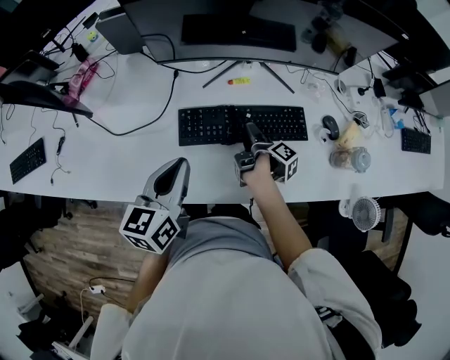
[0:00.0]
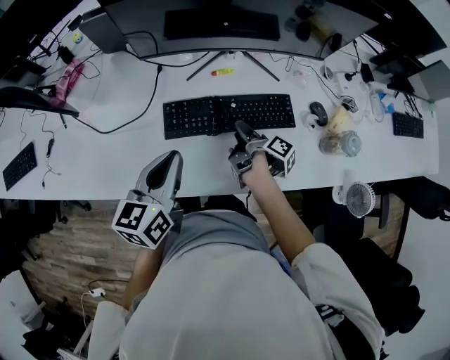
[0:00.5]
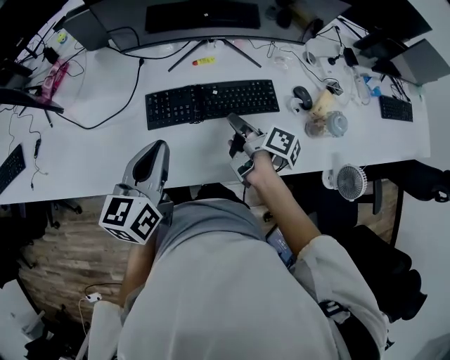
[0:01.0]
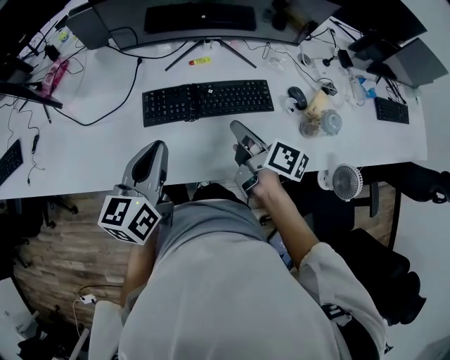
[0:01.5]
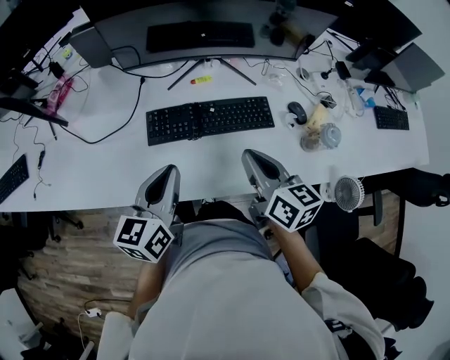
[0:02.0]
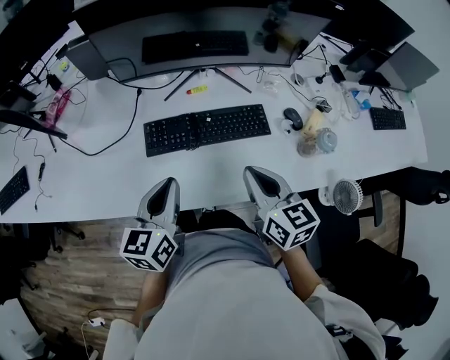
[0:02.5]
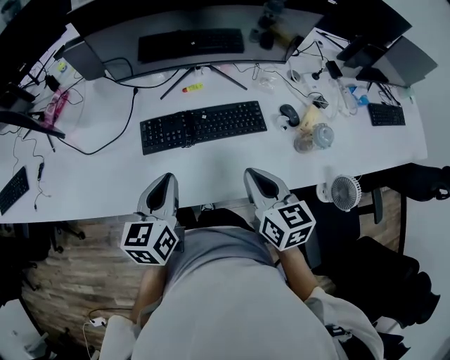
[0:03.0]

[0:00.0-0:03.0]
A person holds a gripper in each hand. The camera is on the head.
0:00.0 to 0:01.5: The left gripper moves approximately 5 cm; the right gripper heads upward and backward, covering some 15 cm, rotates around the line of its fingers by roughly 40 degrees, counterclockwise from behind, and closes its fingers.
0:01.5 to 0:03.0: The right gripper shifts roughly 10 cm backward and upward, and rotates around the line of its fingers by approximately 40 degrees, counterclockwise from behind.

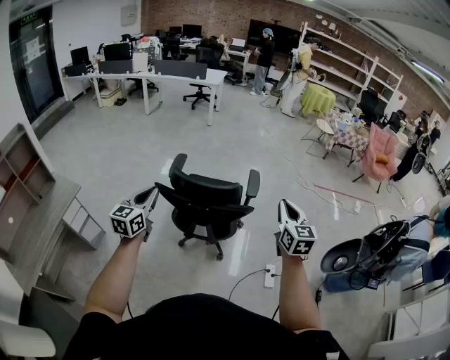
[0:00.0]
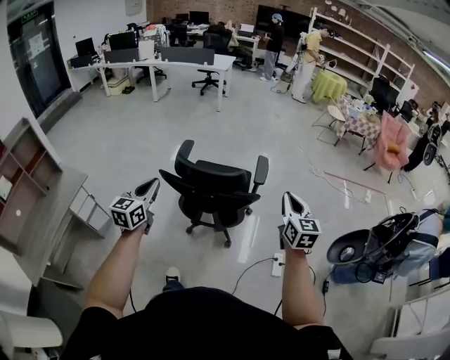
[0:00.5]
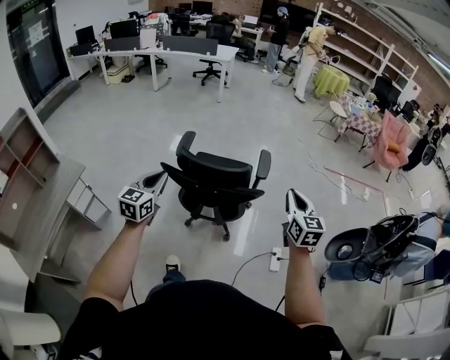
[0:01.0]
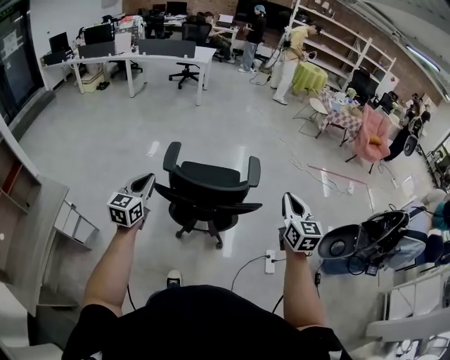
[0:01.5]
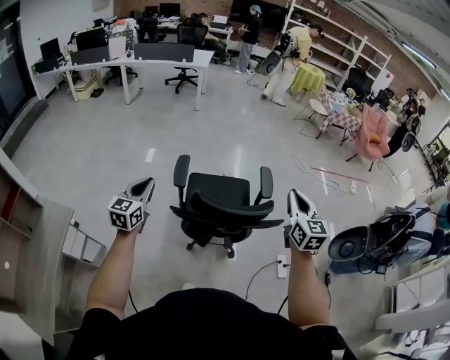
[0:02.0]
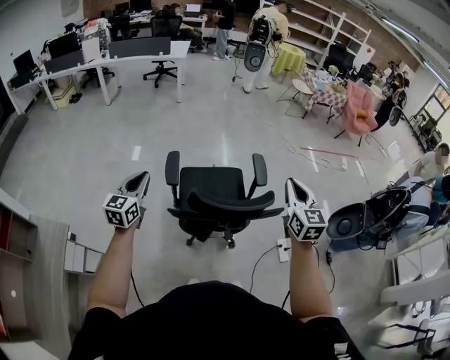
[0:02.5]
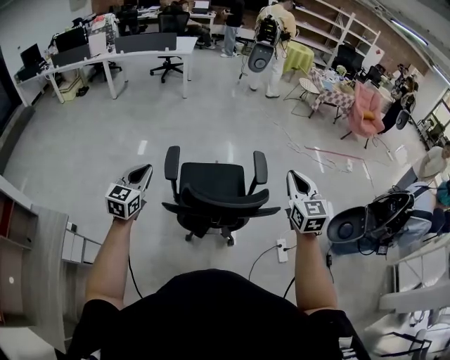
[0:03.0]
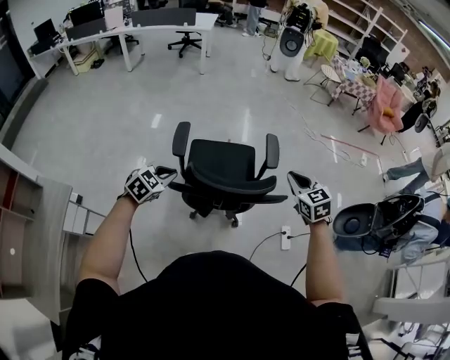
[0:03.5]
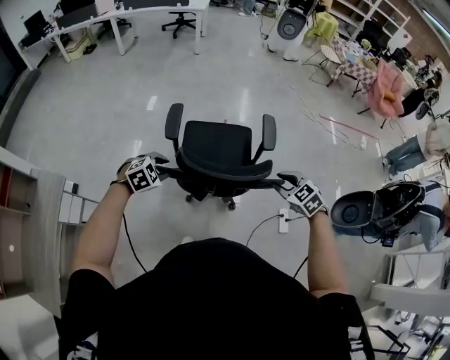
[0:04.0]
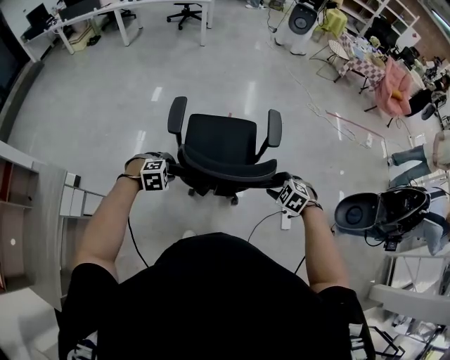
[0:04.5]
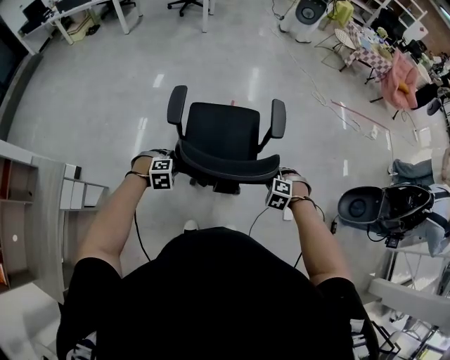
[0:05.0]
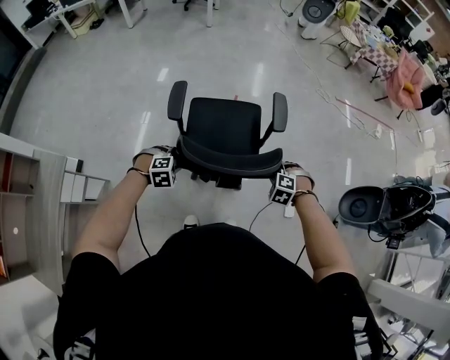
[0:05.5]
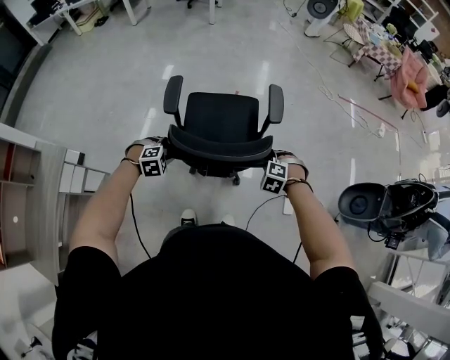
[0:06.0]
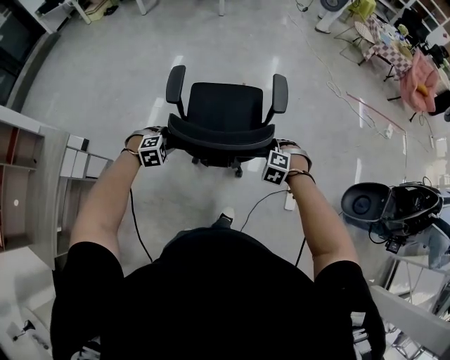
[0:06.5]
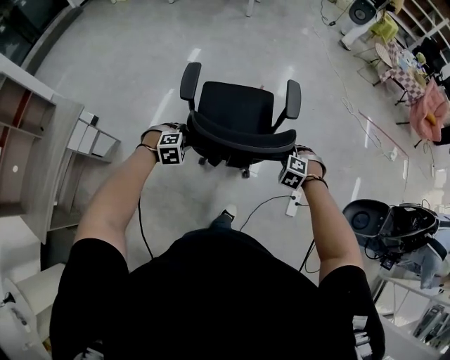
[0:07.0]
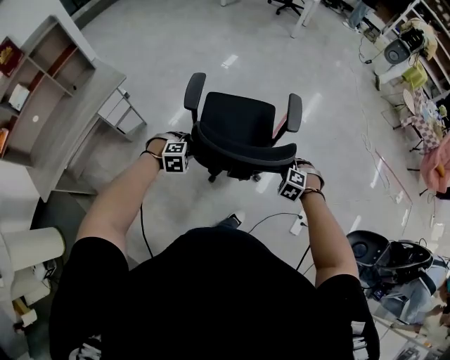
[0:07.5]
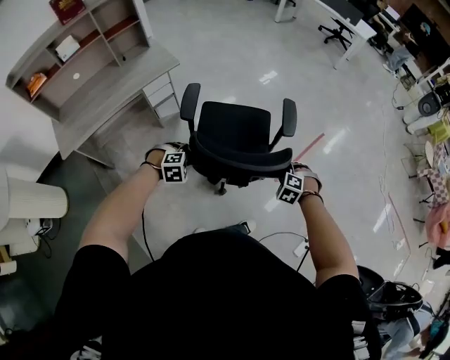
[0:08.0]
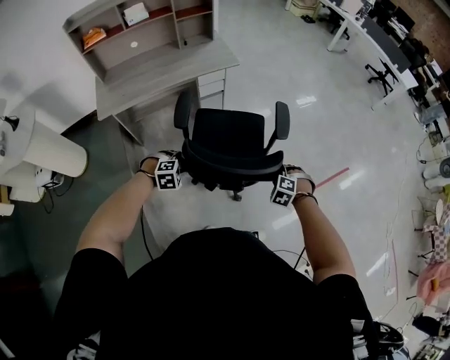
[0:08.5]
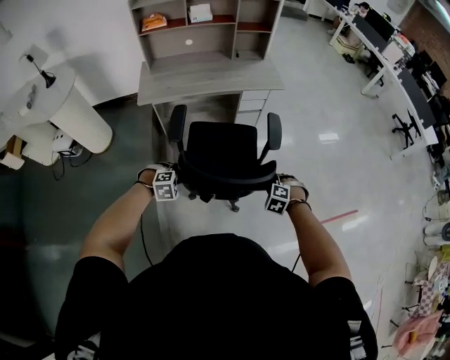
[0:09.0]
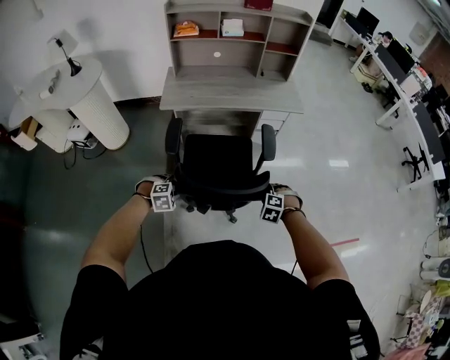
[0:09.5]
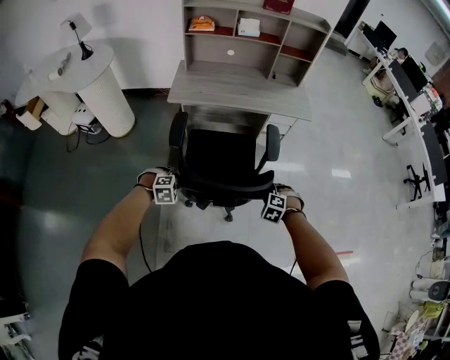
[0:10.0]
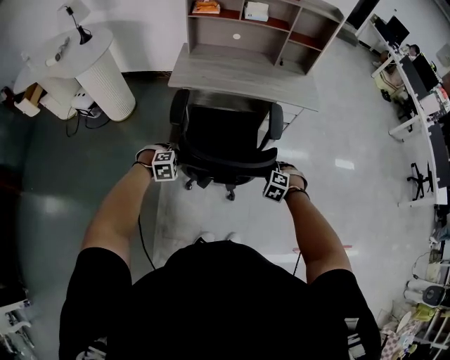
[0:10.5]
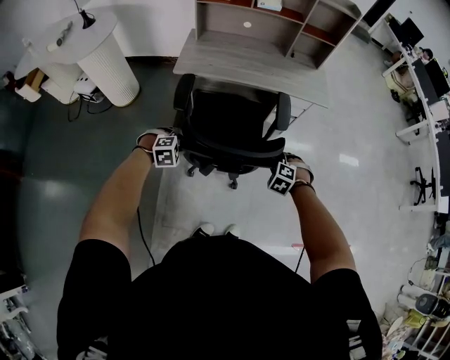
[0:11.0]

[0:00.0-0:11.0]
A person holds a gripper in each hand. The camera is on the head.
0:00.0 to 0:02.0: The right gripper moves to the left and forward, some 20 cm. The left gripper travels forward and to the left by approximately 25 cm.
0:02.0 to 0:03.5: The right gripper goes roughly 10 cm downward, and rotates some 30 degrees, while the left gripper moves to the right and downward, approximately 15 cm, and angles its fingers downward, by some 30 degrees.
0:03.5 to 0:05.5: The two grippers go roughly 20 cm downward. The left gripper rotates approximately 40 degrees, and opens. Meanwhile the right gripper angles its fingers downward, by some 40 degrees, and opens.
0:05.5 to 0:07.5: The left gripper is displaced backward by approximately 25 cm, and changes its angle by some 20 degrees. The right gripper travels backward and to the left by some 15 cm.
0:07.5 to 0:09.0: The two grippers travel together, about 50 cm. The right gripper twists roughly 50 degrees counterclockwise, seen from behind; the left gripper rolls counterclockwise, seen from behind, by about 50 degrees.
0:09.0 to 0:11.0: The right gripper heads forward and to the left, covering approximately 20 cm. The left gripper is displaced to the left and forward by about 15 cm.

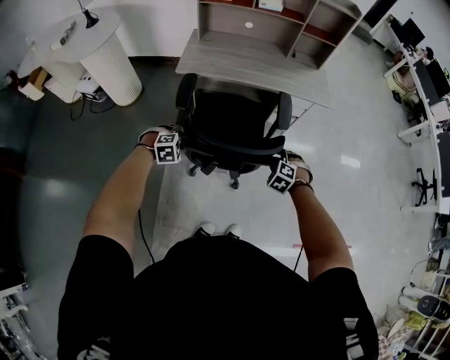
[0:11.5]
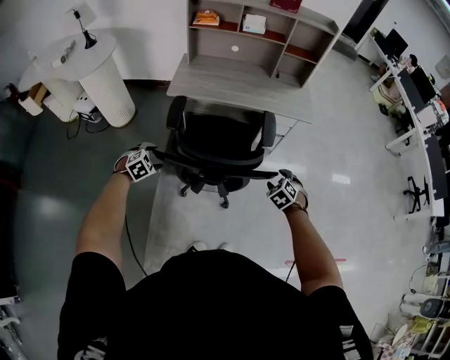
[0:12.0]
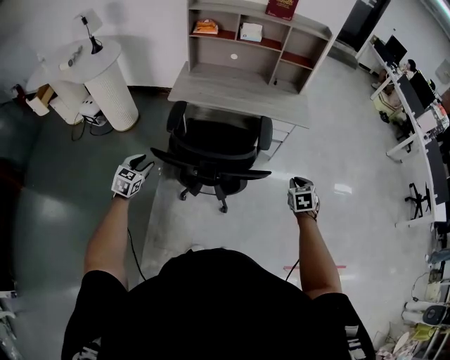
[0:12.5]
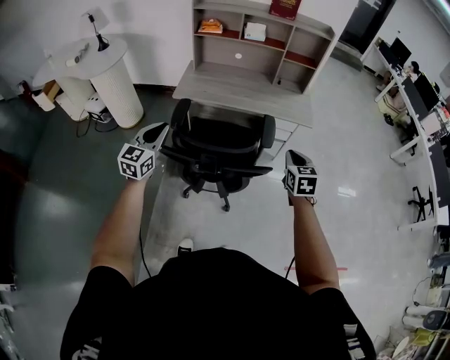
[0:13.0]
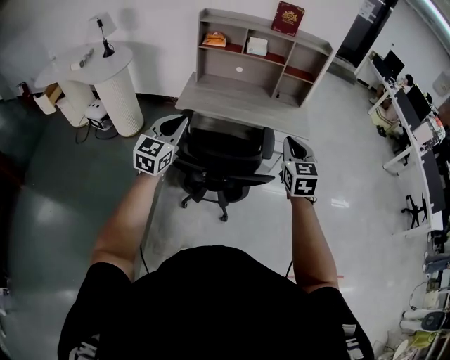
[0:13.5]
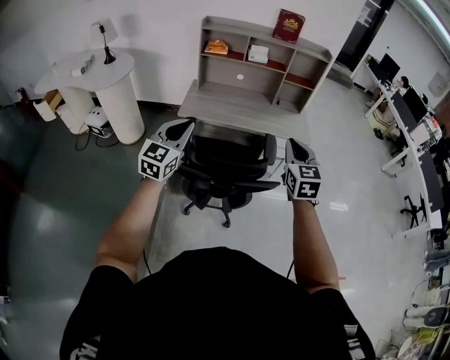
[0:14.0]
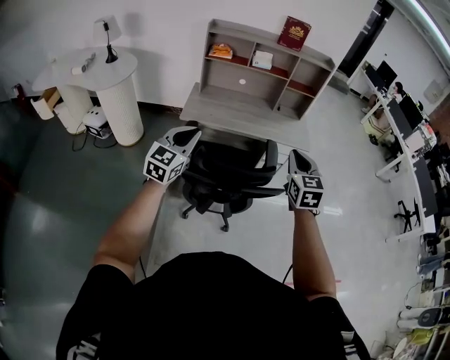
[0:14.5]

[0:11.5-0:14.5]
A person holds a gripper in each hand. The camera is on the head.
0:11.5 to 0:13.0: The right gripper heads upward and to the right, covering about 25 cm, twists about 60 degrees clockwise, seen from behind, and closes; the left gripper goes approximately 30 cm upward, tilts its fingers some 60 degrees upward, and closes up.
0:13.0 to 0:14.5: The right gripper shifts some 20 cm upward and to the left; the left gripper moves upward, about 10 cm.

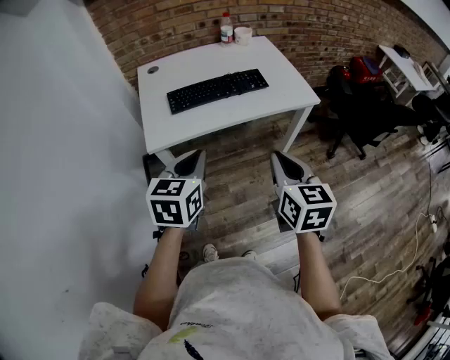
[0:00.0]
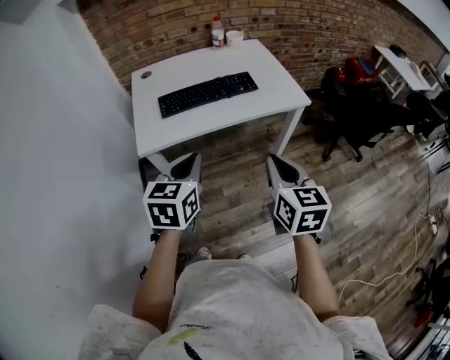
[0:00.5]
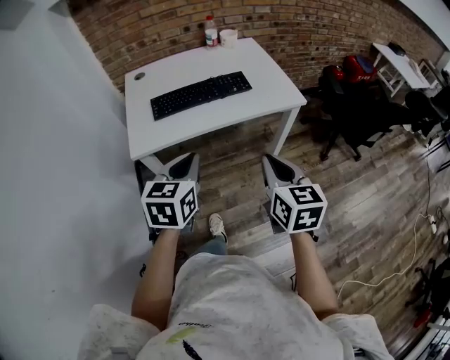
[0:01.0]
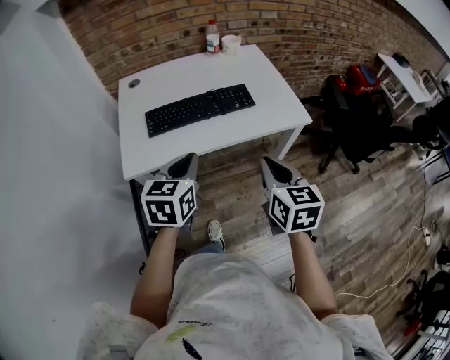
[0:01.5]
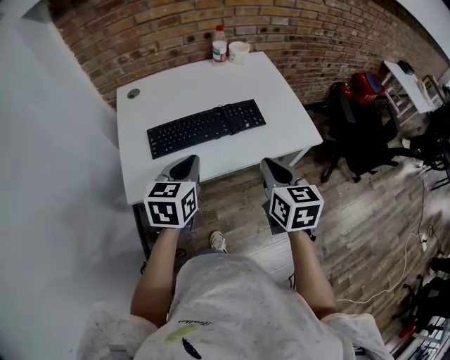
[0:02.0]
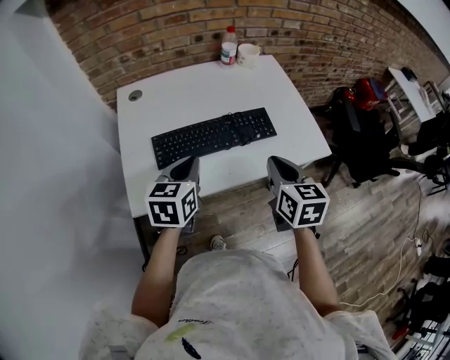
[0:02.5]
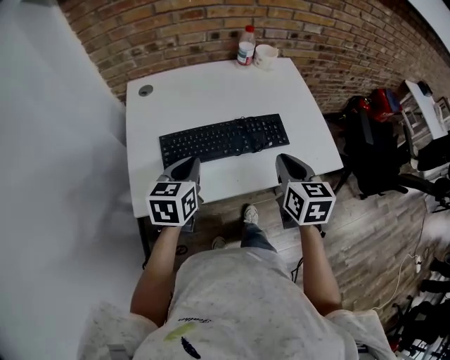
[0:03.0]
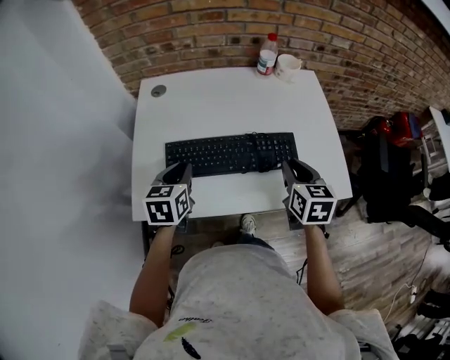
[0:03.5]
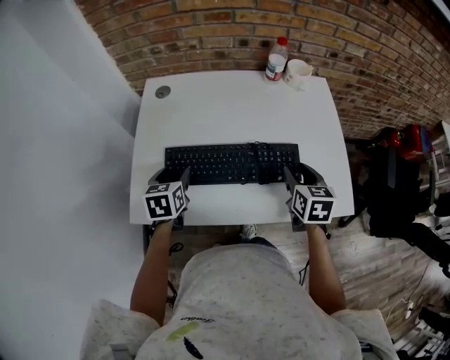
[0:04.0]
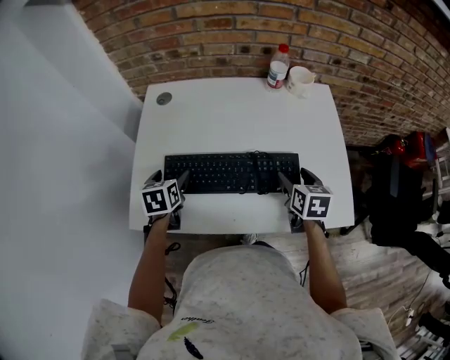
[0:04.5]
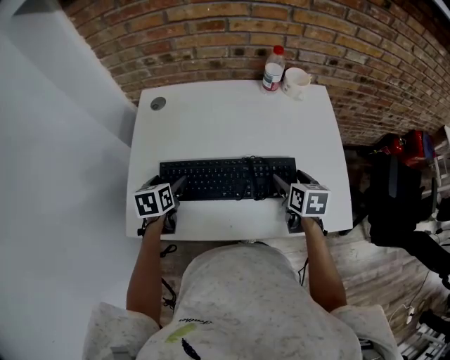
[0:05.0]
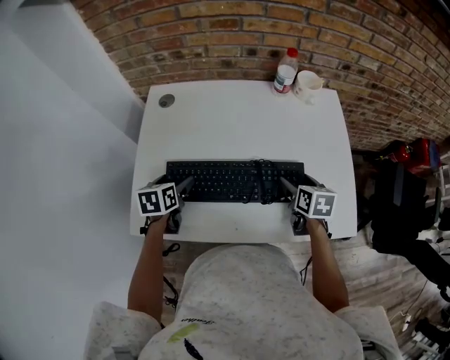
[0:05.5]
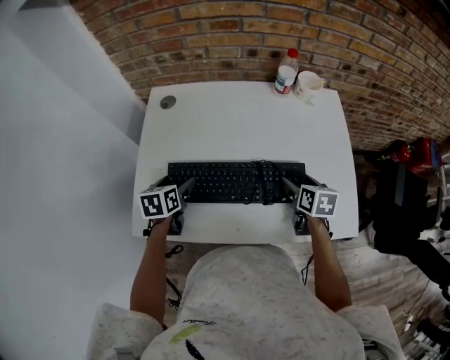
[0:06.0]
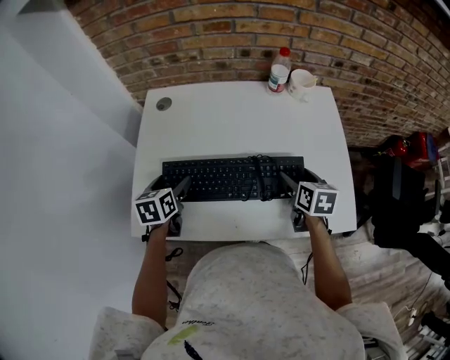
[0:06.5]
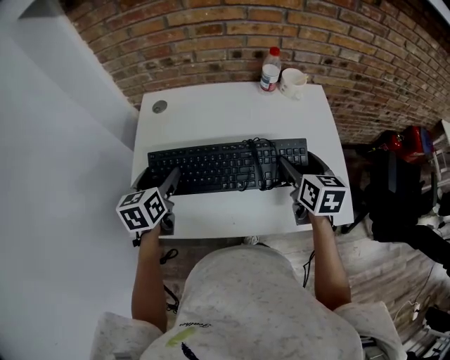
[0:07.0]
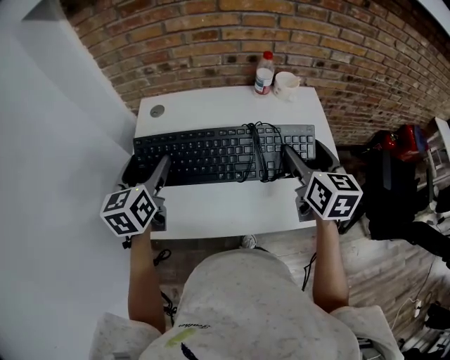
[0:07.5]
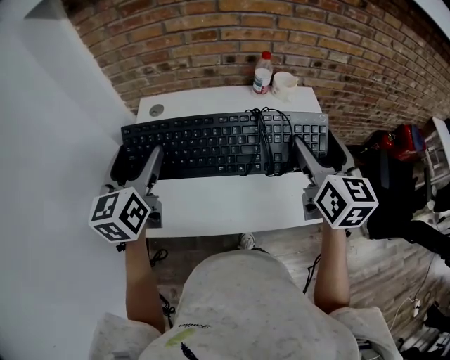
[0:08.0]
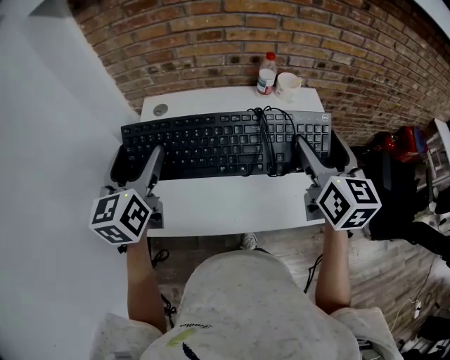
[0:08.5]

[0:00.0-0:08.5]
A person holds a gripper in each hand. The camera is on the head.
0:00.0 to 0:02.0: The two grippers go some 25 cm forward.
0:02.0 to 0:04.0: The right gripper moves forward and downward, approximately 30 cm, and opens its fingers. Meanwhile the left gripper is displaced forward, downward and to the left by some 25 cm, changes its angle by about 30 degrees, and opens.
0:04.0 to 0:06.5: The left gripper opens its fingers. Meanwhile the right gripper moves forward, about 5 cm, and opens.
0:06.5 to 0:08.5: The two grippers go roughly 25 cm upward. The right gripper tips its fingers upward by about 30 degrees. Meanwhile the left gripper tips its fingers upward by some 30 degrees.
